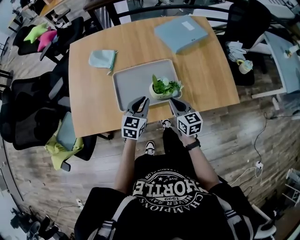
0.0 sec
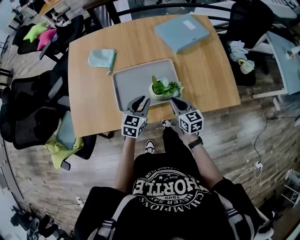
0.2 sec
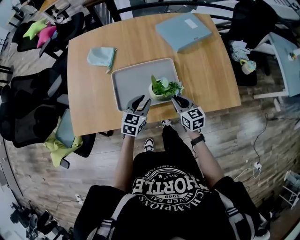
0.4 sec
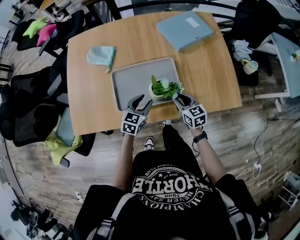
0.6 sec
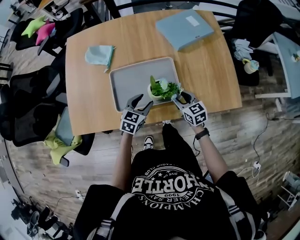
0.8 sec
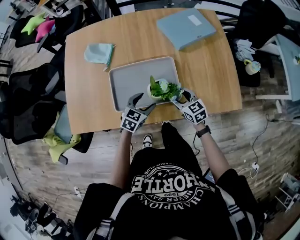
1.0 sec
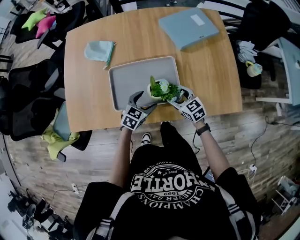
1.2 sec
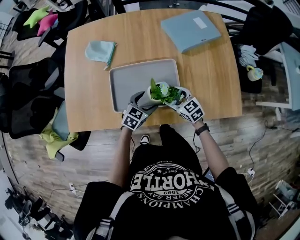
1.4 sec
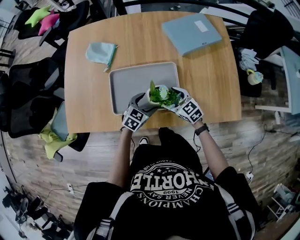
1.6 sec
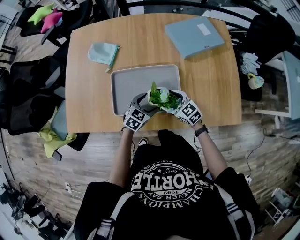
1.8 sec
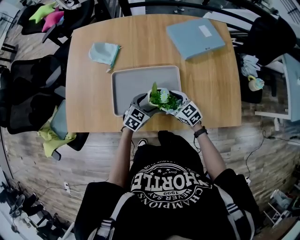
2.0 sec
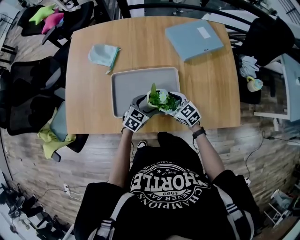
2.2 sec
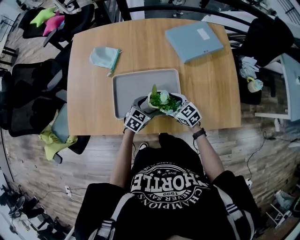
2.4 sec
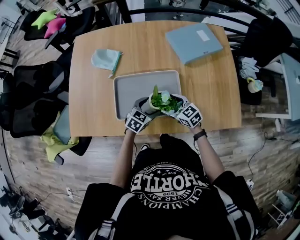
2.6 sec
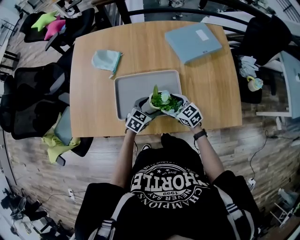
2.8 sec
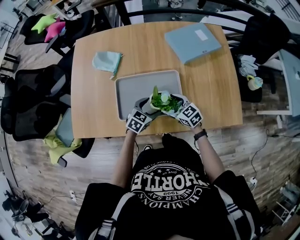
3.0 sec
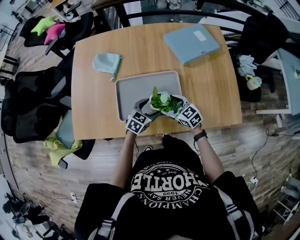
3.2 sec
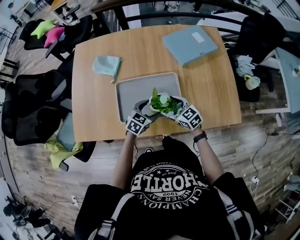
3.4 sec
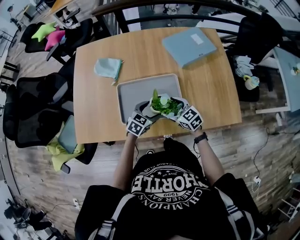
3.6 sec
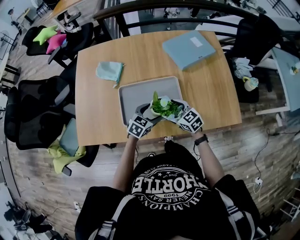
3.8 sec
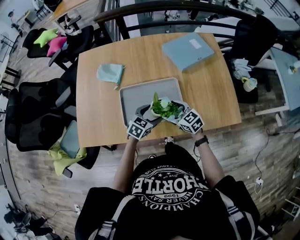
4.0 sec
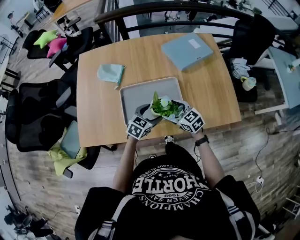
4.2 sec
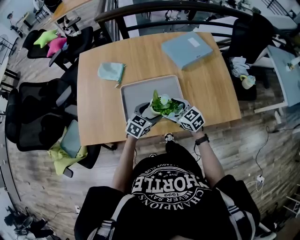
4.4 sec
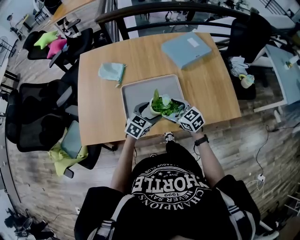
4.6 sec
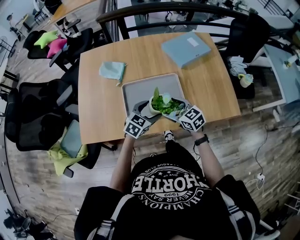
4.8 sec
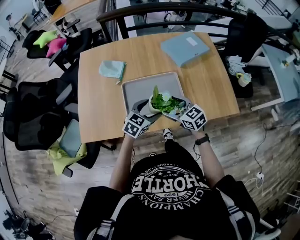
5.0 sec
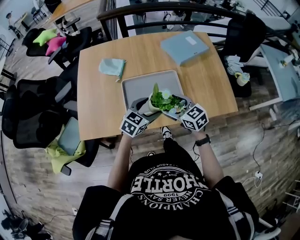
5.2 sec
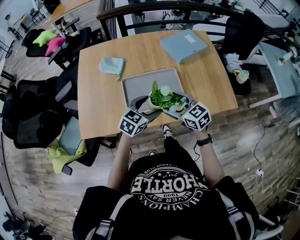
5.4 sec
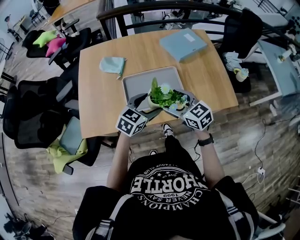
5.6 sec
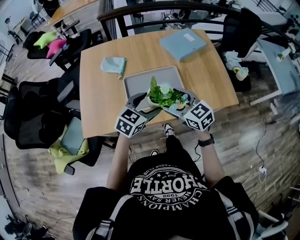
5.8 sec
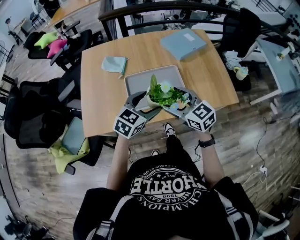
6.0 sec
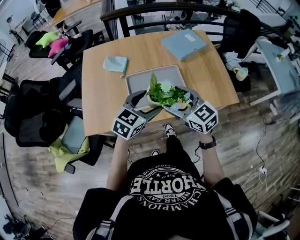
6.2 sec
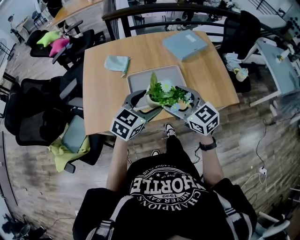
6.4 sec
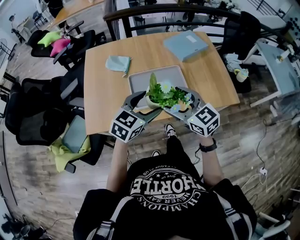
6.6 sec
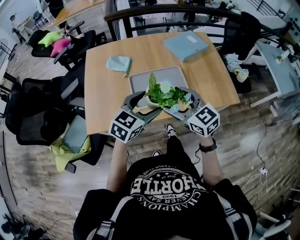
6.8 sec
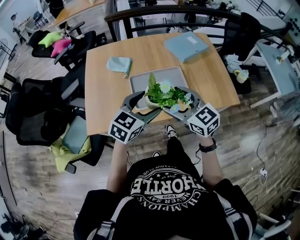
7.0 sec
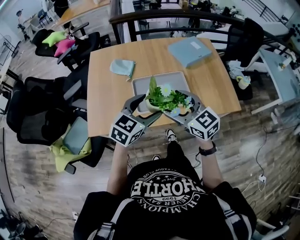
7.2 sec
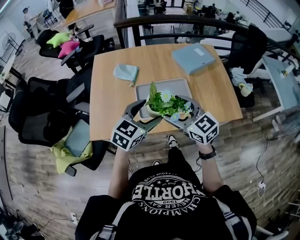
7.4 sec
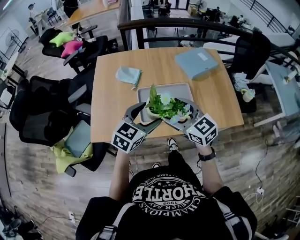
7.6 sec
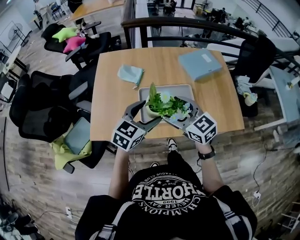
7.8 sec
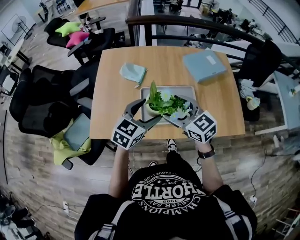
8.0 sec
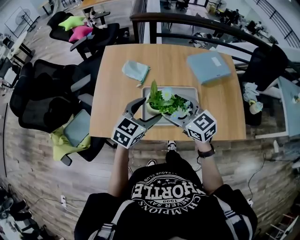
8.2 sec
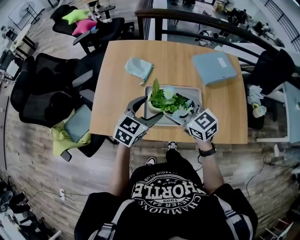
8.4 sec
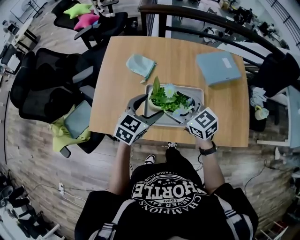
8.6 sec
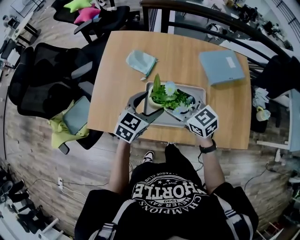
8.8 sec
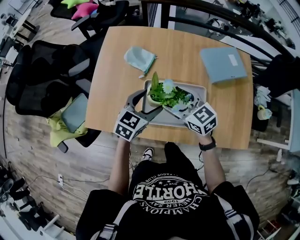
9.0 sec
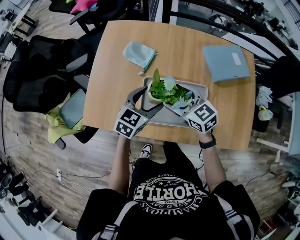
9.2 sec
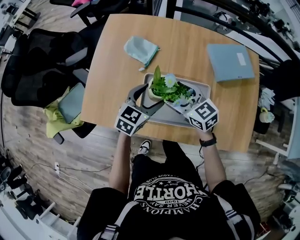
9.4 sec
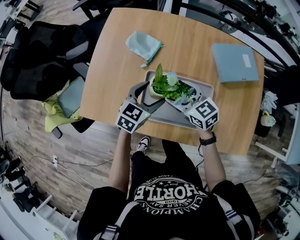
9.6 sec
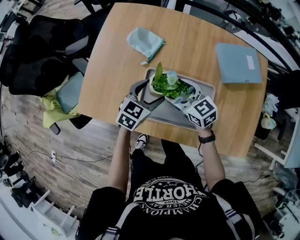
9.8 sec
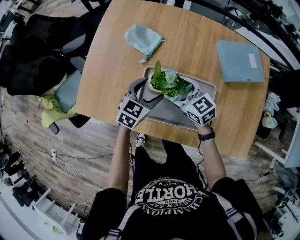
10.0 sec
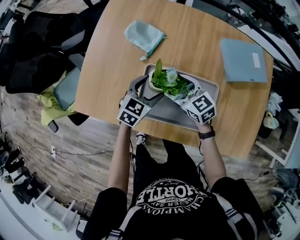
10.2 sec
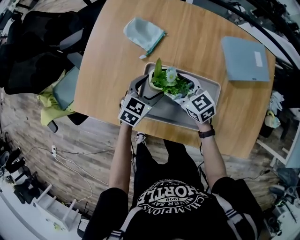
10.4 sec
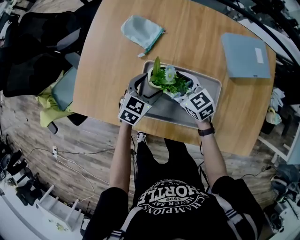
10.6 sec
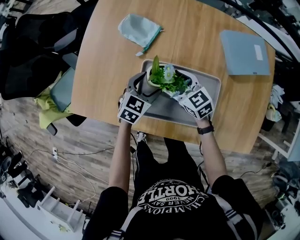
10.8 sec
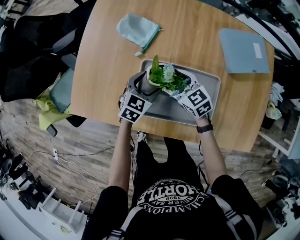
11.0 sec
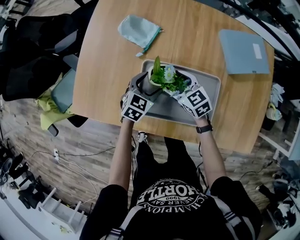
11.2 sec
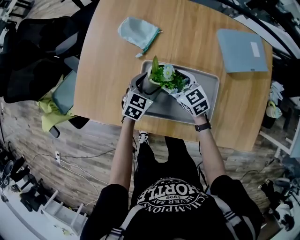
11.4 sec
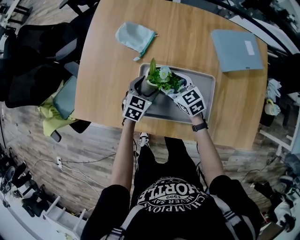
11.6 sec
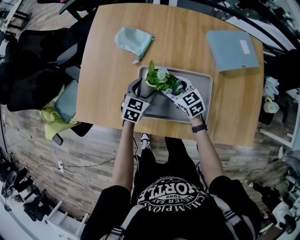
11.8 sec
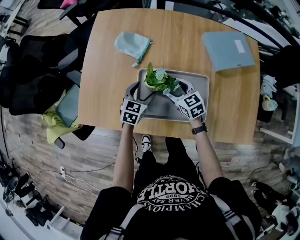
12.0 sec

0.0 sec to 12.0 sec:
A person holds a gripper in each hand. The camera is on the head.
0.0 sec to 1.6 sec: The left gripper shifts about 15 cm downward and to the right, swivels about 20 degrees, and opens; the right gripper heads downward and forward, covering about 15 cm, changes its angle by some 40 degrees, and opens.
1.6 sec to 3.0 sec: The grippers make only small movements.
3.0 sec to 4.4 sec: Both grippers travel together upward, approximately 5 cm.
4.4 sec to 6.0 sec: The grippers both shift upward and backward by about 20 cm.
6.0 sec to 7.6 sec: Both grippers travel together to the left, some 5 cm.
7.6 sec to 9.0 sec: The grippers both shift forward and downward by roughly 20 cm.
9.0 sec to 10.4 sec: Both grippers move downward, approximately 15 cm.
10.4 sec to 12.0 sec: The grippers make only small movements.

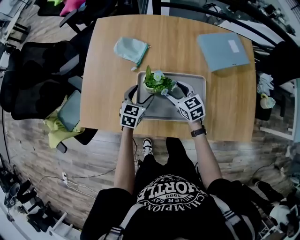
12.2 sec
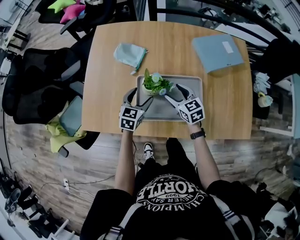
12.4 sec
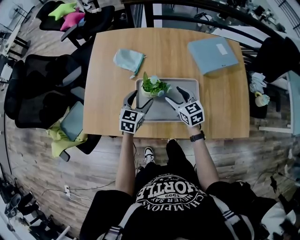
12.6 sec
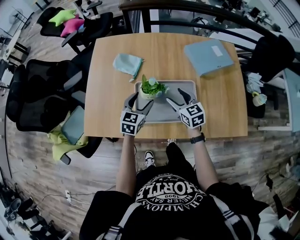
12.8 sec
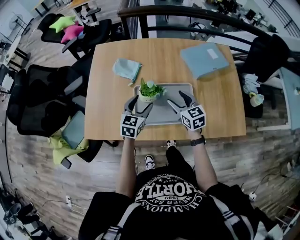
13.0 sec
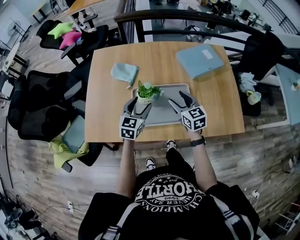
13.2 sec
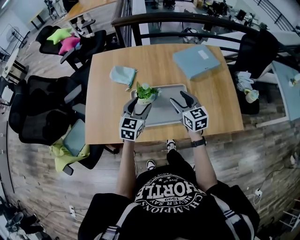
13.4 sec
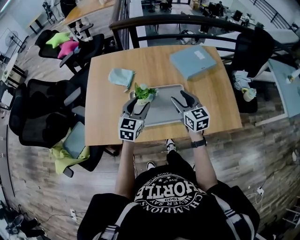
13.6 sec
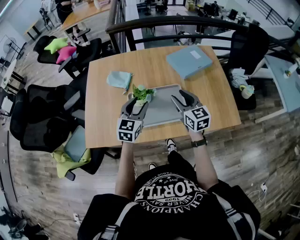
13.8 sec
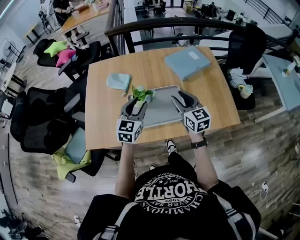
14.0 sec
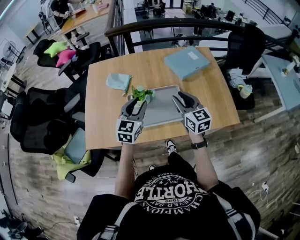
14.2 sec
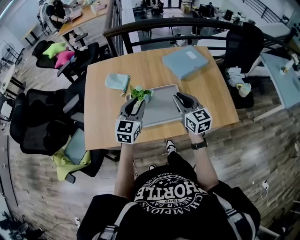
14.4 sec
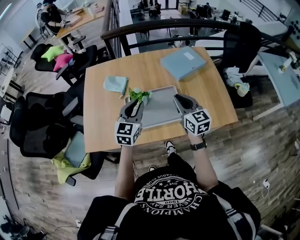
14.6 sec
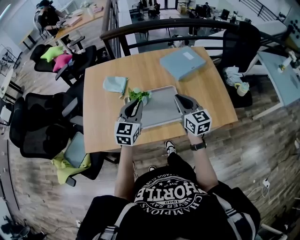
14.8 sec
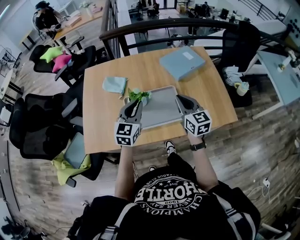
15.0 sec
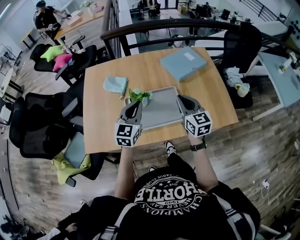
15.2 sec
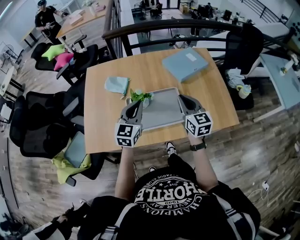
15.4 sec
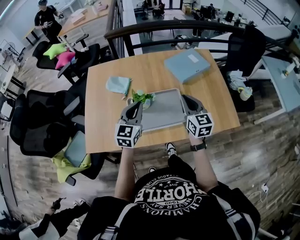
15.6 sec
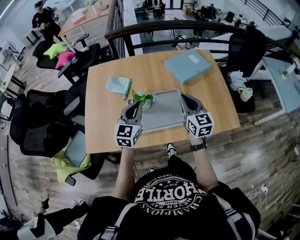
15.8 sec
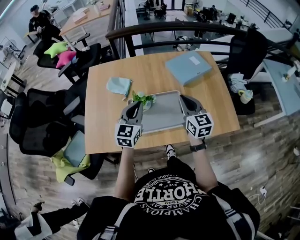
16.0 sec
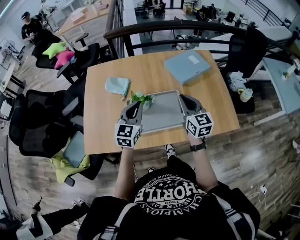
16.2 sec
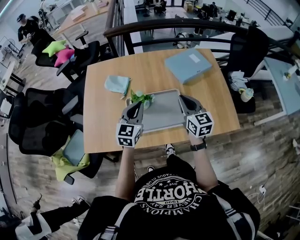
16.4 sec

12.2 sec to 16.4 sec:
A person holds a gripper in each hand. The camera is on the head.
12.2 sec to 13.6 sec: The left gripper shifts some 20 cm upward and backward. Meanwhile the right gripper is displaced upward, to the right and backward by approximately 20 cm, and changes its angle by about 30 degrees.
13.6 sec to 15.0 sec: The right gripper changes place by some 5 cm, and closes. Meanwhile the left gripper shifts roughly 5 cm upward, and closes its fingers.
15.0 sec to 16.4 sec: The grippers stay close to where they were, moving slightly.

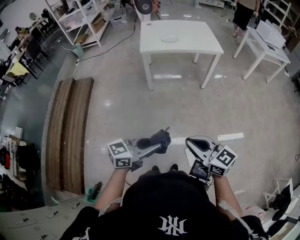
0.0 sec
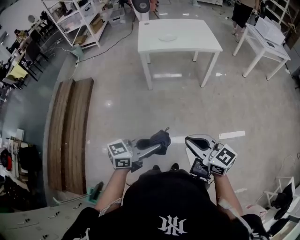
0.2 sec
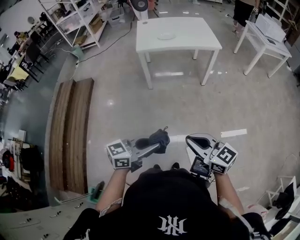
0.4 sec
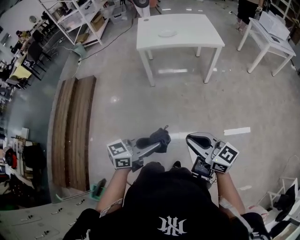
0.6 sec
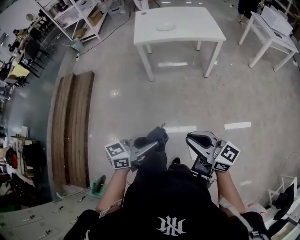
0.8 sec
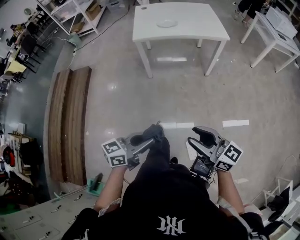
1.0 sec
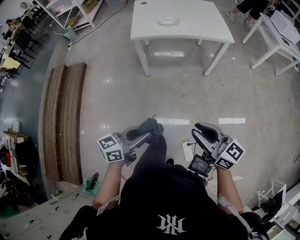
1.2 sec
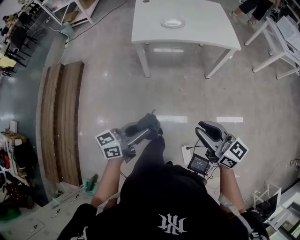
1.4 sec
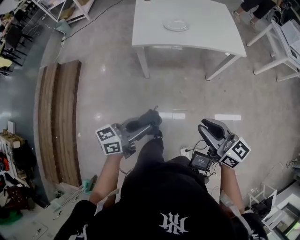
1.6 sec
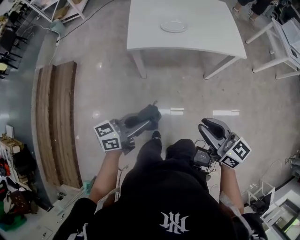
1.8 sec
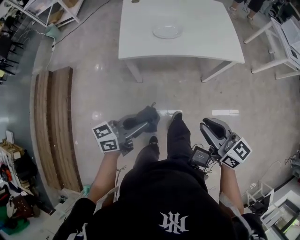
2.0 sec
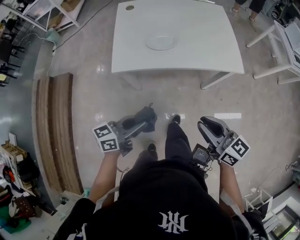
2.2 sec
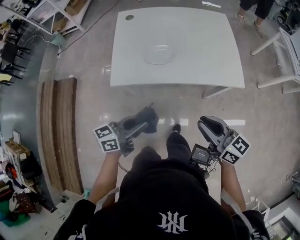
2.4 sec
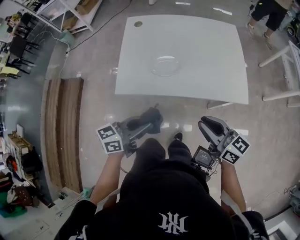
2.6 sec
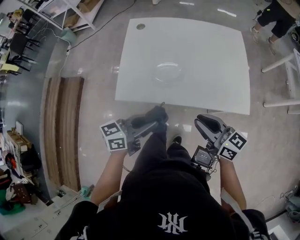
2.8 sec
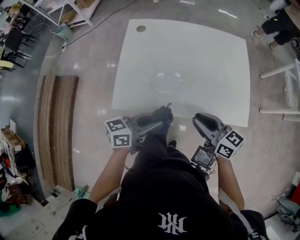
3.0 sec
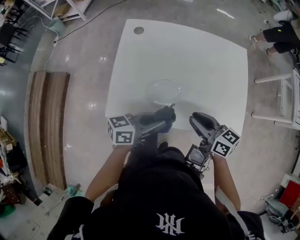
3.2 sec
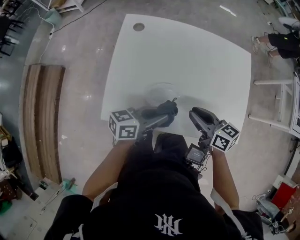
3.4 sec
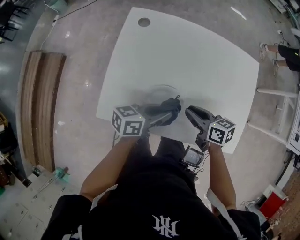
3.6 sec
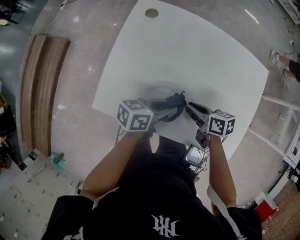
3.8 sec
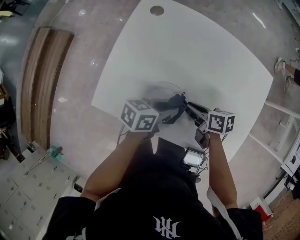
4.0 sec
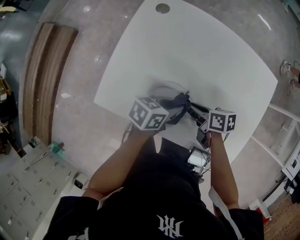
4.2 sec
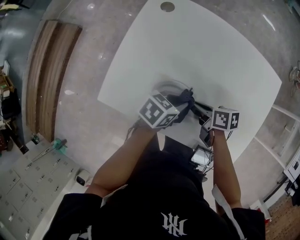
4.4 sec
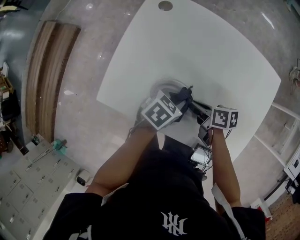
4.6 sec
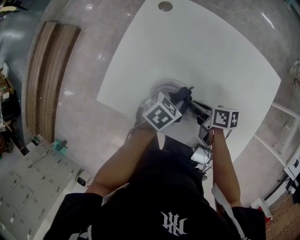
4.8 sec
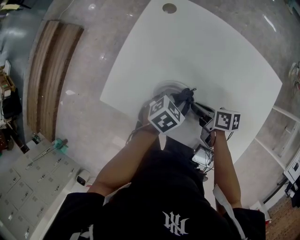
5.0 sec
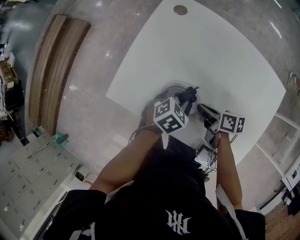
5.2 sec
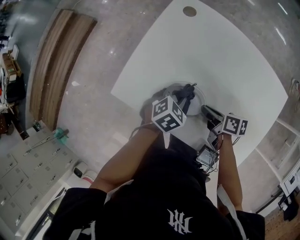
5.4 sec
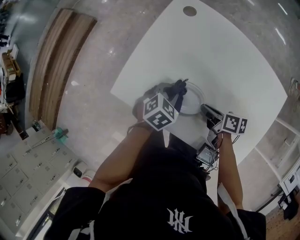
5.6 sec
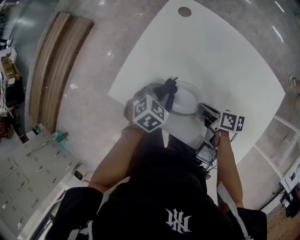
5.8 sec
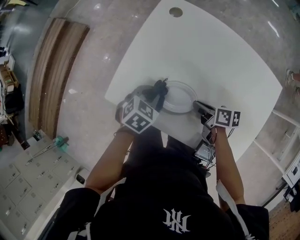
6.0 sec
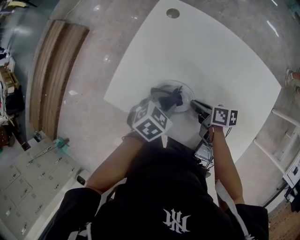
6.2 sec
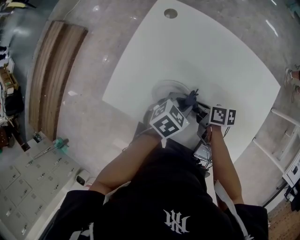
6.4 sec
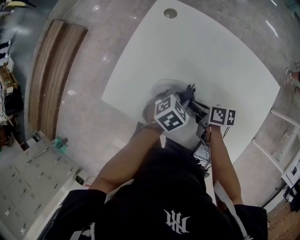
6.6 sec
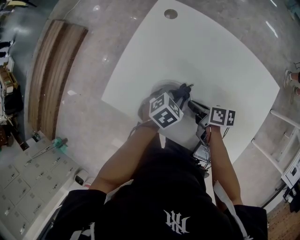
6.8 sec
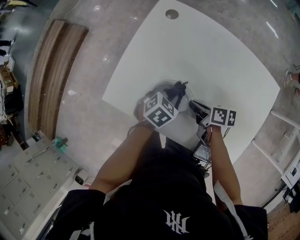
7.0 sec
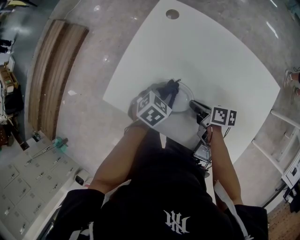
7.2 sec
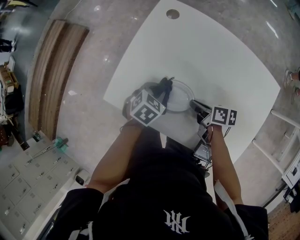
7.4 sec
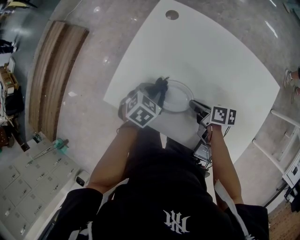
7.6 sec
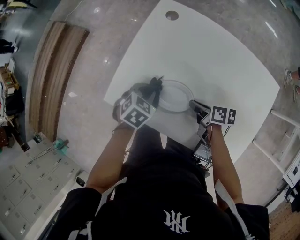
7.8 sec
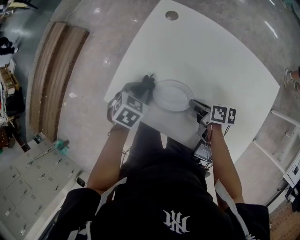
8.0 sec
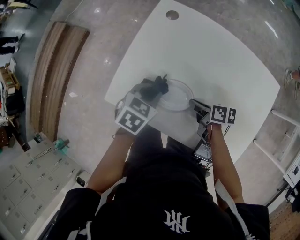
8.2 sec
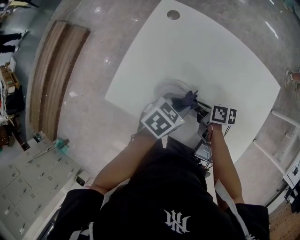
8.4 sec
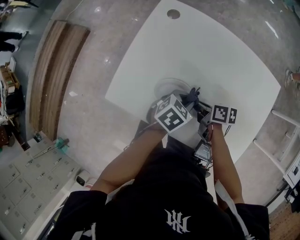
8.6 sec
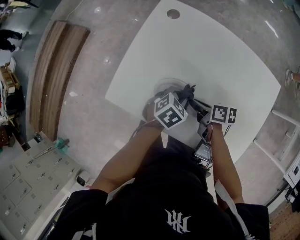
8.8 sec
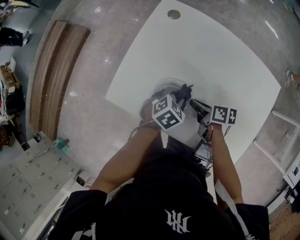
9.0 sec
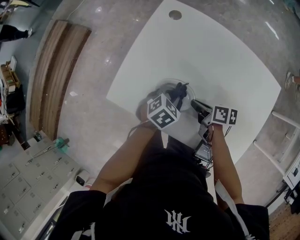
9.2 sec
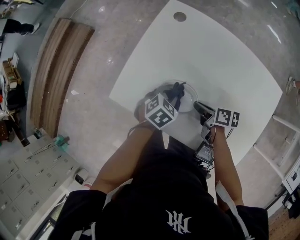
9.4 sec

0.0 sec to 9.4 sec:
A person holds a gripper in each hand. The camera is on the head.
0.0 sec to 1.6 sec: Both grippers move forward, about 40 cm.
1.6 sec to 3.2 sec: The pair of grippers is taken forward, some 60 cm.
3.2 sec to 4.8 sec: Both grippers travel together downward, some 15 cm. The right gripper rotates approximately 40 degrees; the left gripper angles its fingers downward, by about 40 degrees.
6.2 sec to 7.8 sec: The left gripper shifts by about 10 cm.
7.8 sec to 9.4 sec: The left gripper goes upward and returns, about 5 cm each way.
